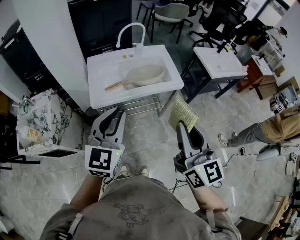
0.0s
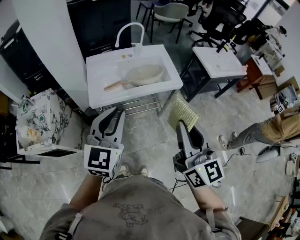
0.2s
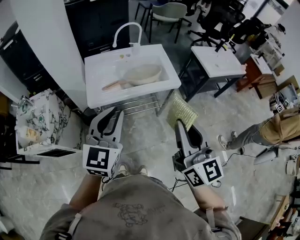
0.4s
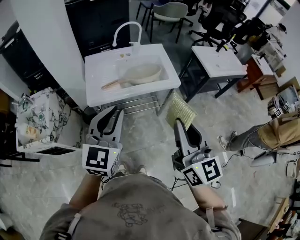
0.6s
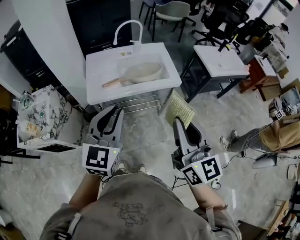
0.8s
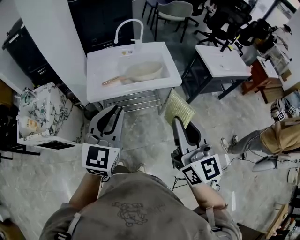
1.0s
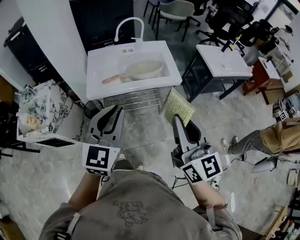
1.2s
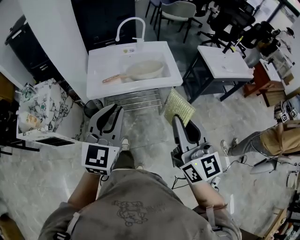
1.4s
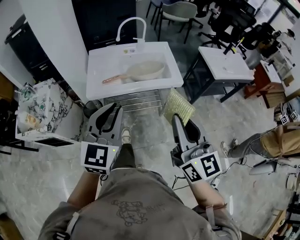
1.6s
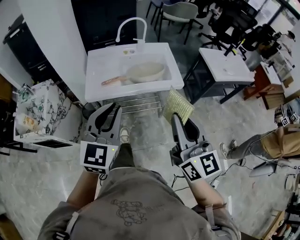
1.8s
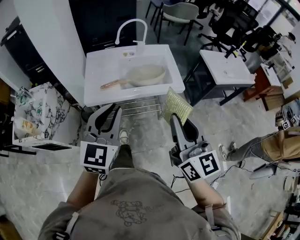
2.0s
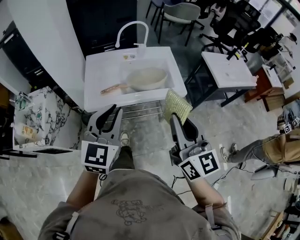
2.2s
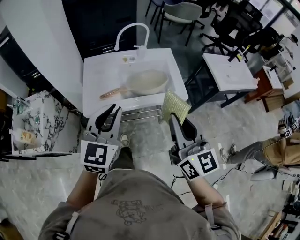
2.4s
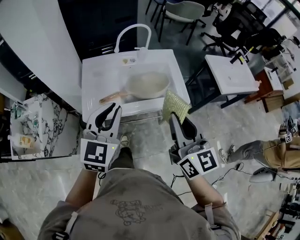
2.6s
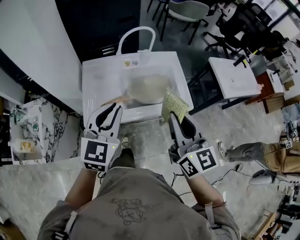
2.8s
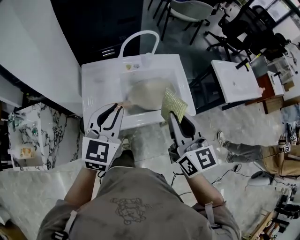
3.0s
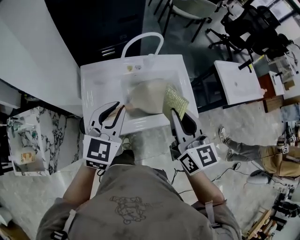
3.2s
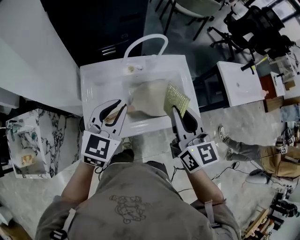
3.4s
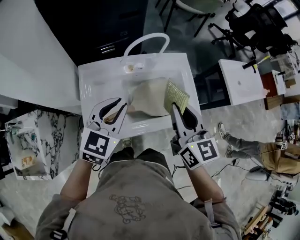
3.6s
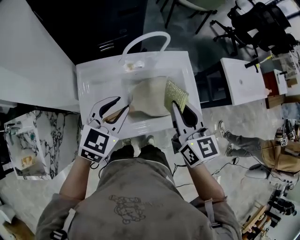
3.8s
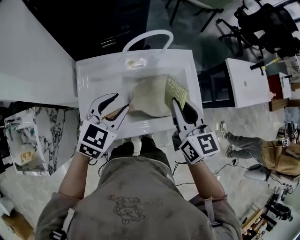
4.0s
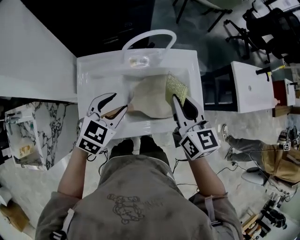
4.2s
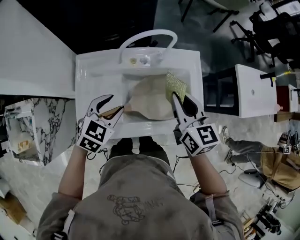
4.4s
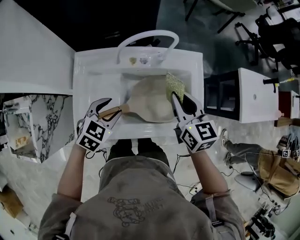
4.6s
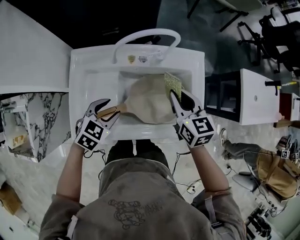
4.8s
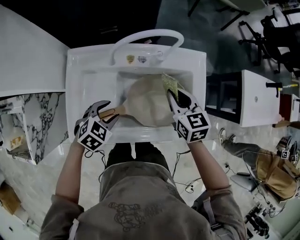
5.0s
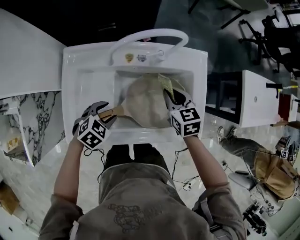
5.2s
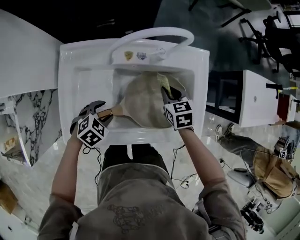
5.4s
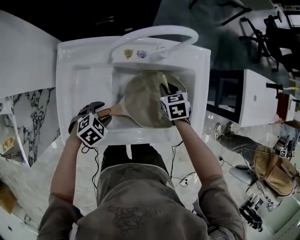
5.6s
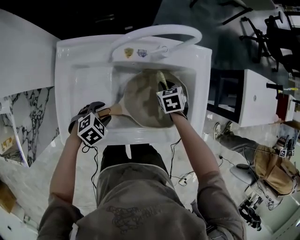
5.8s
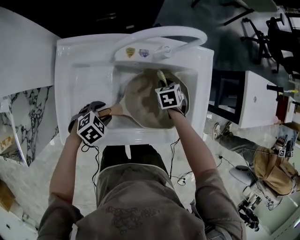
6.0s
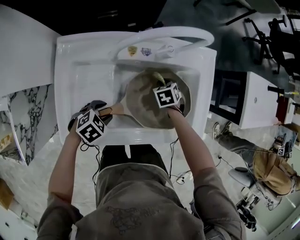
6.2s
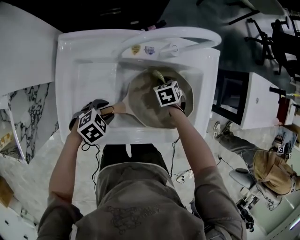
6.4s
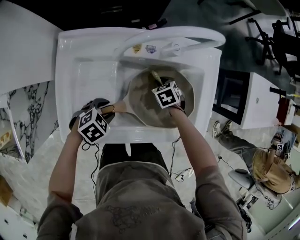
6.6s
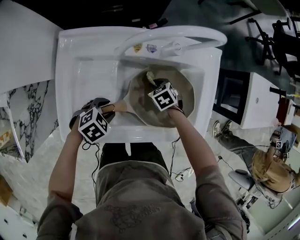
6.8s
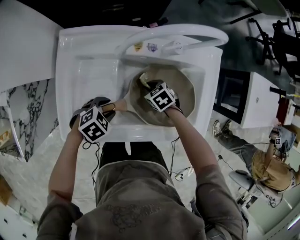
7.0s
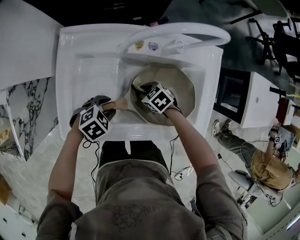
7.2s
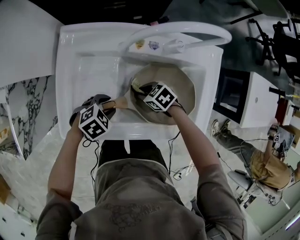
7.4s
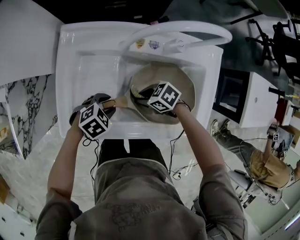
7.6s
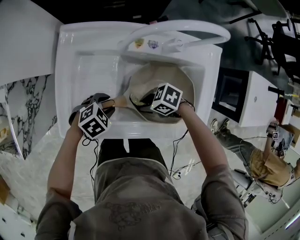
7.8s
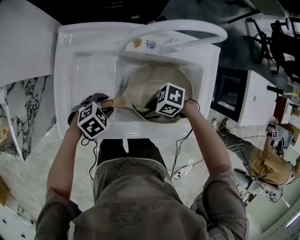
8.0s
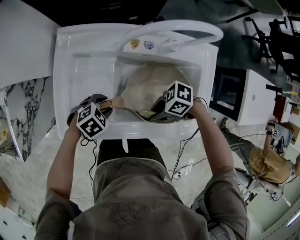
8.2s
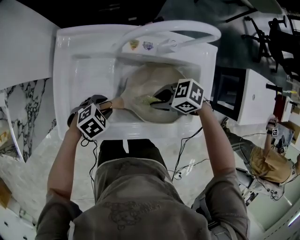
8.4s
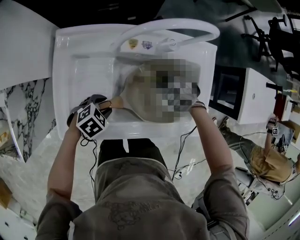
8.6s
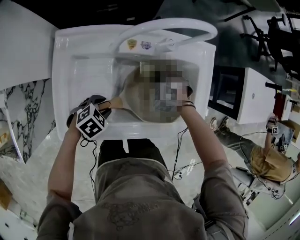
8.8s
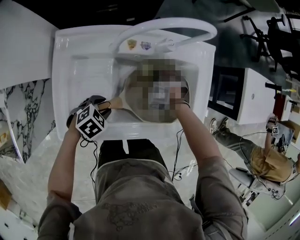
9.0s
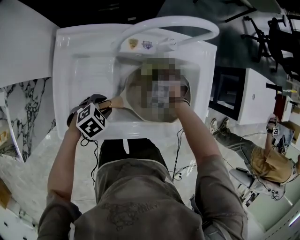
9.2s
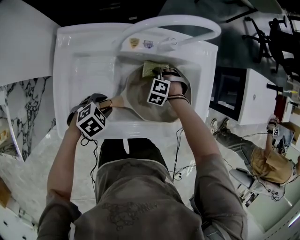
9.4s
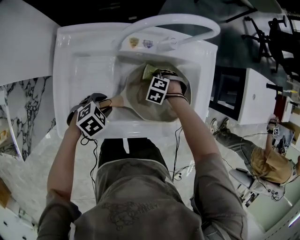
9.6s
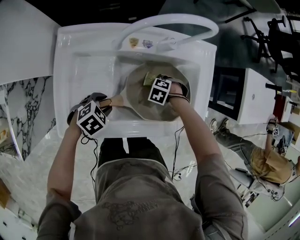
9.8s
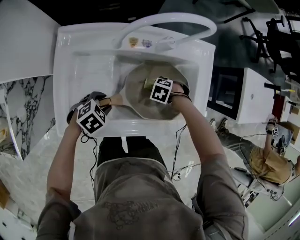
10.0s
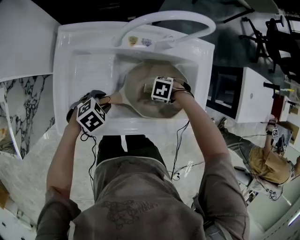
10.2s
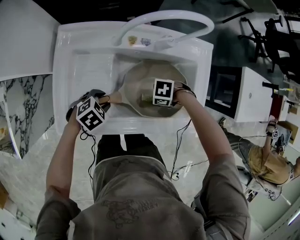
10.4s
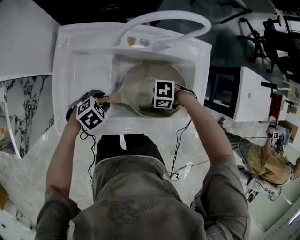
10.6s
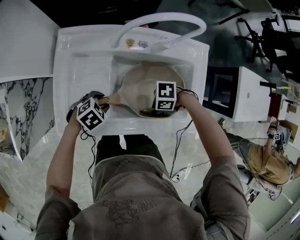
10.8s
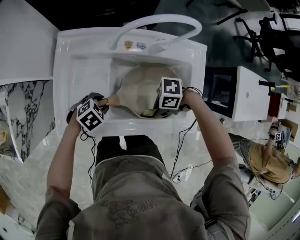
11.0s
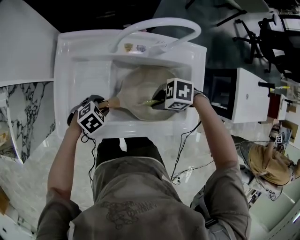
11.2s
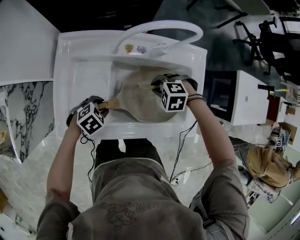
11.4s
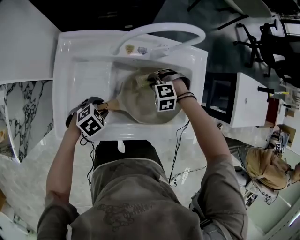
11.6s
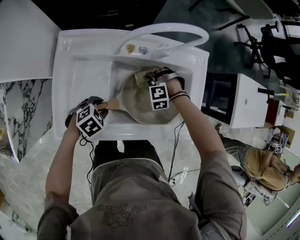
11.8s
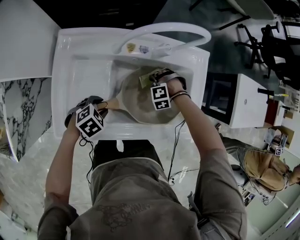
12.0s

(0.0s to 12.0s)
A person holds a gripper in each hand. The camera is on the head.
0.0s - 1.6s: Both grippers move to the right, some 5 cm.
1.6s - 3.0s: The grippers both shift forward by some 30 cm.
3.0s - 4.4s: The left gripper shifts roughly 20 cm downward and forward, rotates about 30 degrees, and opens up; the right gripper travels forward and downward by some 25 cm.
4.4s - 6.0s: The right gripper heads downward, covering roughly 35 cm, and angles its fingers downward, by some 50 degrees. The left gripper goes some 20 cm downward, and turns by about 30 degrees.
6.0s - 7.6s: The right gripper changes place by approximately 20 cm, and rotates some 60 degrees.
7.6s - 9.0s: The right gripper travels upward and back again, some 10 cm each way, and rotates about 70 degrees.
9.0s - 10.4s: The right gripper moves about 15 cm, and turns by about 60 degrees.
10.4s - 12.0s: The right gripper moves roughly 10 cm upward and comes back, and changes its angle by approximately 60 degrees.

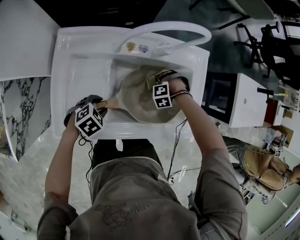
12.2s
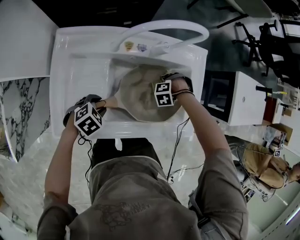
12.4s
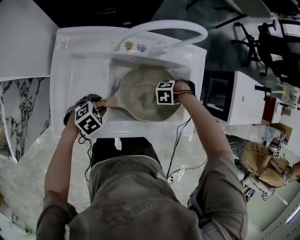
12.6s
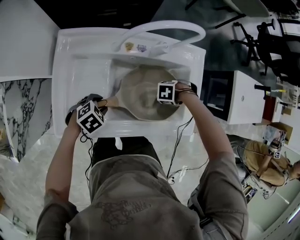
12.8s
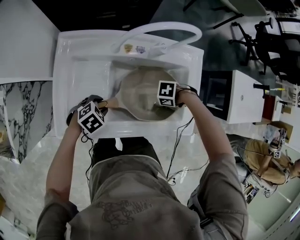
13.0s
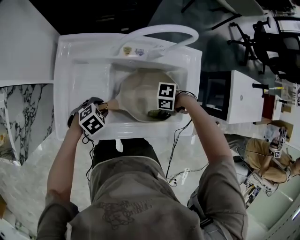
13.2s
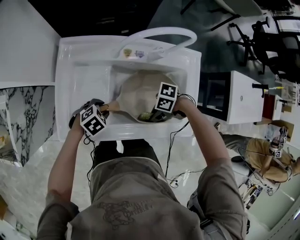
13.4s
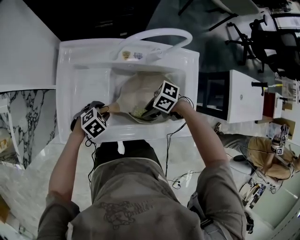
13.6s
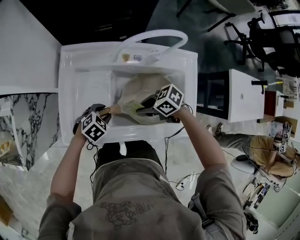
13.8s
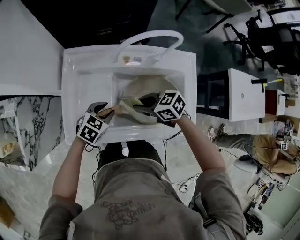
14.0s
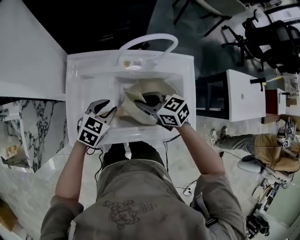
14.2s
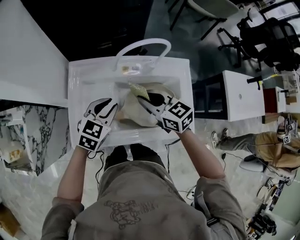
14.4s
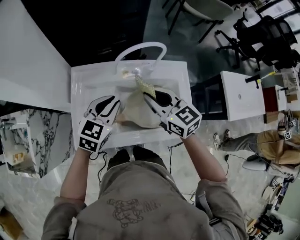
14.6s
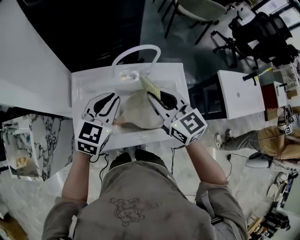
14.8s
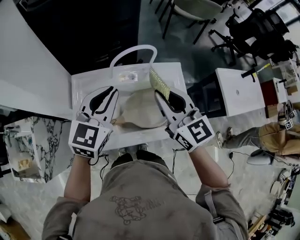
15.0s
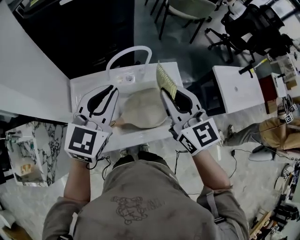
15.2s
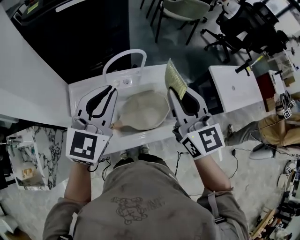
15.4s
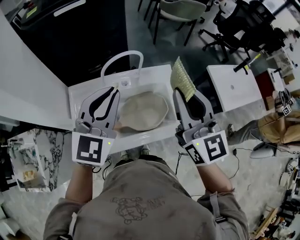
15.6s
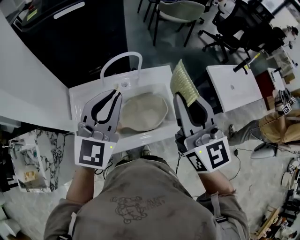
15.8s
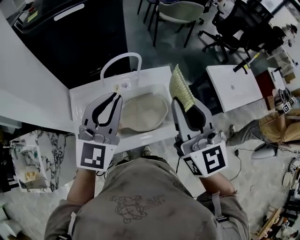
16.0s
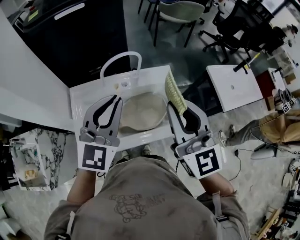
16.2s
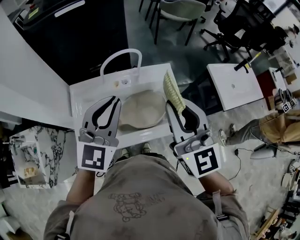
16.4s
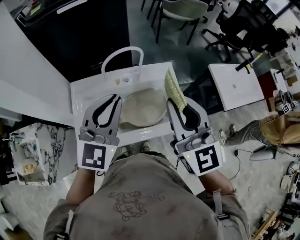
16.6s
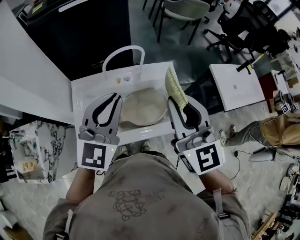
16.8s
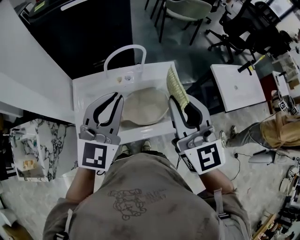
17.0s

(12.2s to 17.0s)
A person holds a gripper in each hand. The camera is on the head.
12.2s - 13.8s: The right gripper ends up roughly 25 cm from where it was, and tips its fingers upward by approximately 40 degrees.
13.8s - 15.4s: The two grippers go about 40 cm upward. The right gripper points its fingers about 40 degrees further upward; the left gripper angles its fingers upward, by approximately 60 degrees, and closes its fingers.
15.4s - 17.0s: Both grippers move backward, roughly 5 cm.

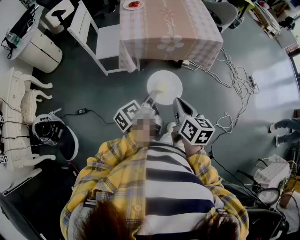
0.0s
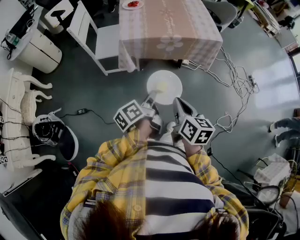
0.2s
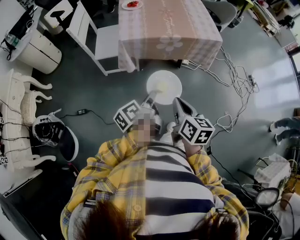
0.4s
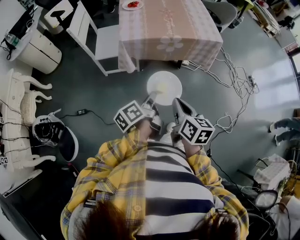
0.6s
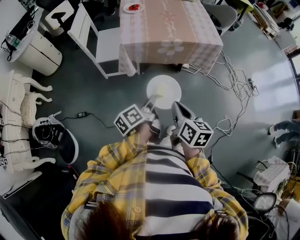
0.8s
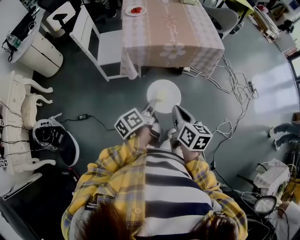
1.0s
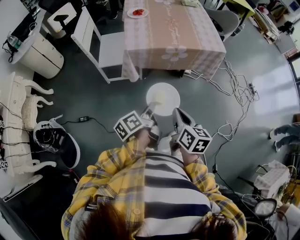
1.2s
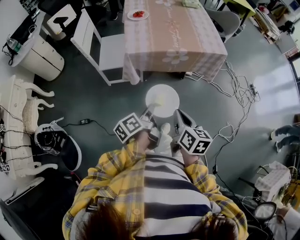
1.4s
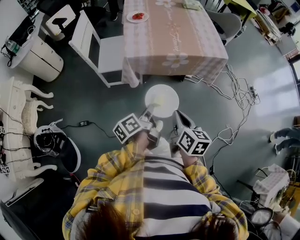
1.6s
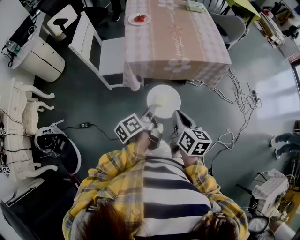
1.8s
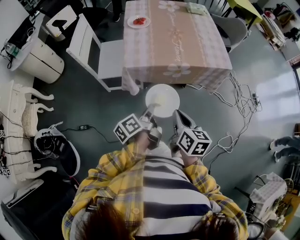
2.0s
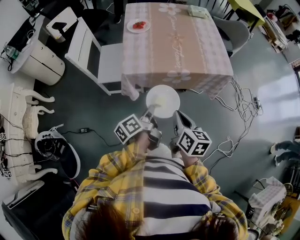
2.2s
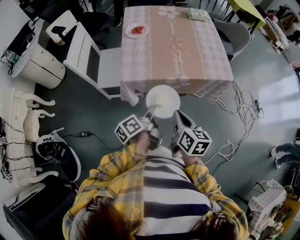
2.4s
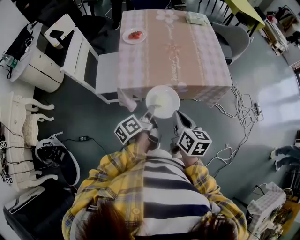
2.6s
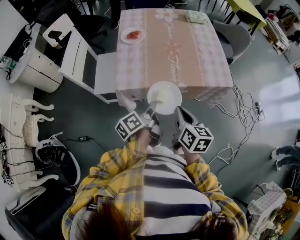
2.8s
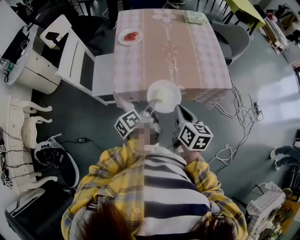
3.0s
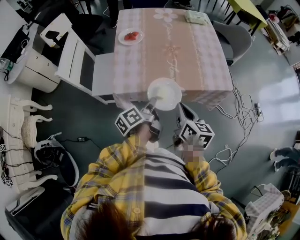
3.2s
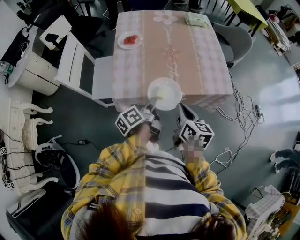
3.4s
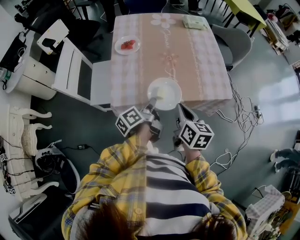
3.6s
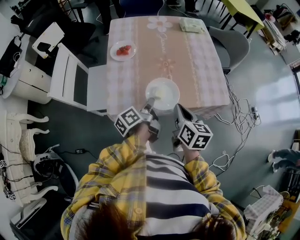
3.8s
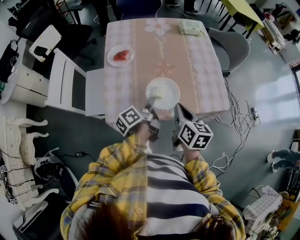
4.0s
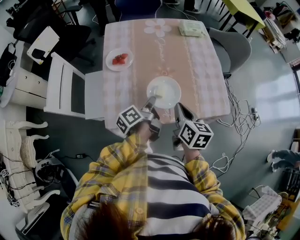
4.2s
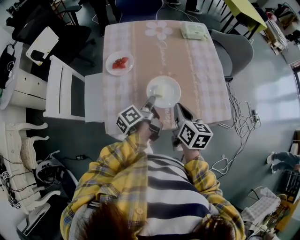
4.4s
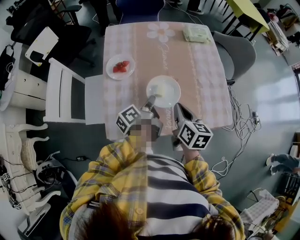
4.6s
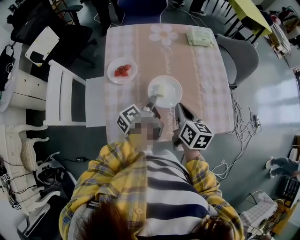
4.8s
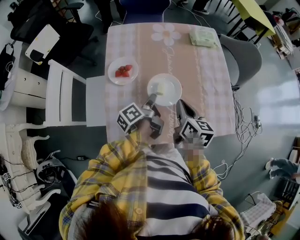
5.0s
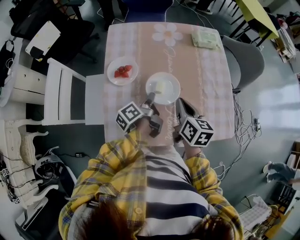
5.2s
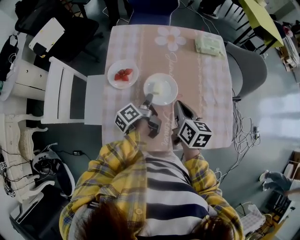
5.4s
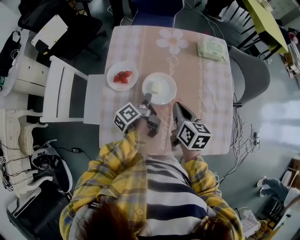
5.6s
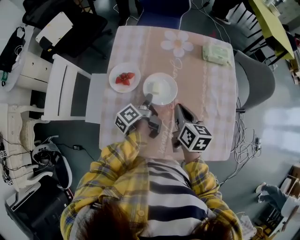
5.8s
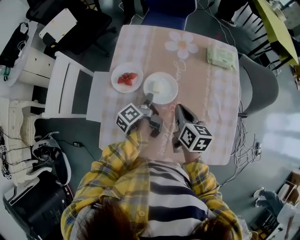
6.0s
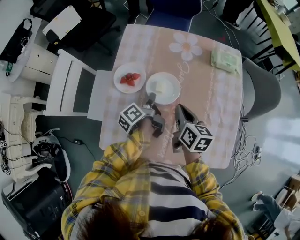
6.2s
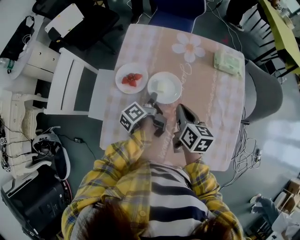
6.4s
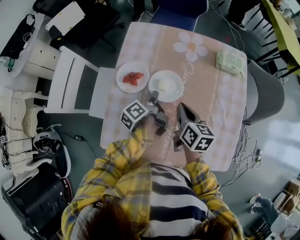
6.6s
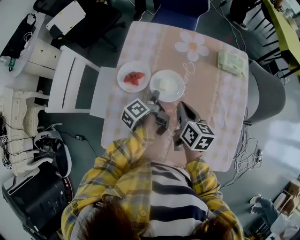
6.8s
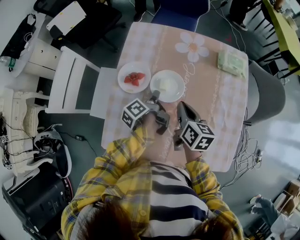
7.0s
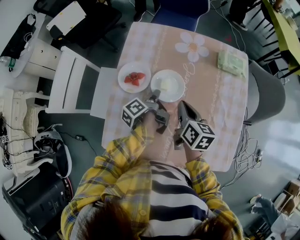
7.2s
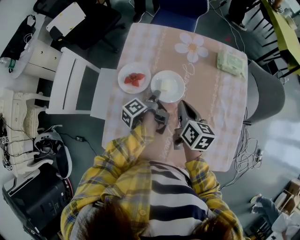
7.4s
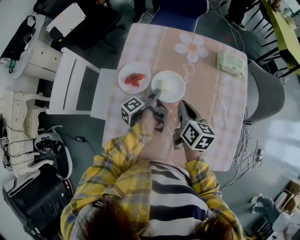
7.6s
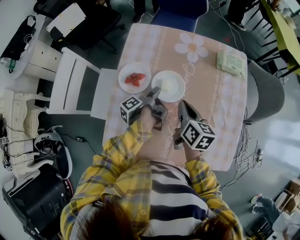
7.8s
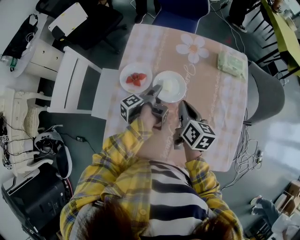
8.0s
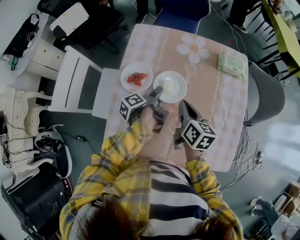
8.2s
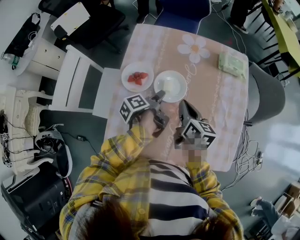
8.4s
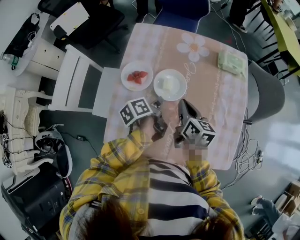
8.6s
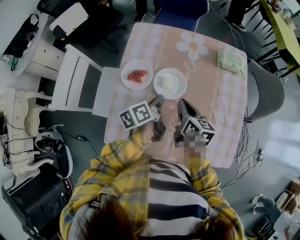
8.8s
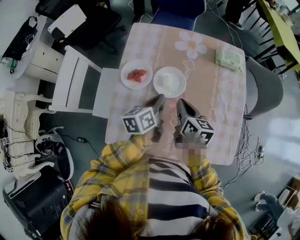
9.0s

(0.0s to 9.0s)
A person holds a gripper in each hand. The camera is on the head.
0.0s - 1.6s: The right gripper moves approximately 5 cm.
1.6s - 3.0s: The right gripper changes place by some 20 cm.
3.0s - 4.4s: The right gripper changes place by some 20 cm.
4.4s - 6.0s: The right gripper changes place by about 15 cm.
